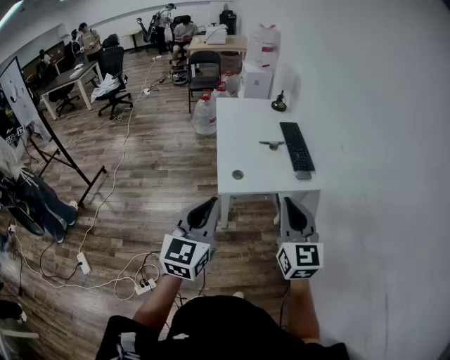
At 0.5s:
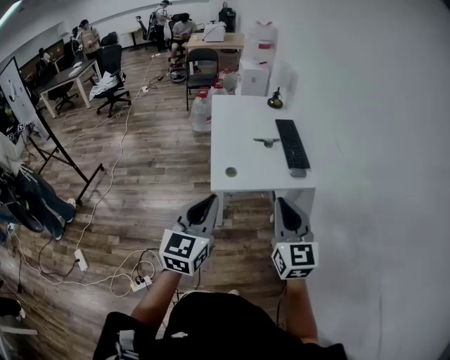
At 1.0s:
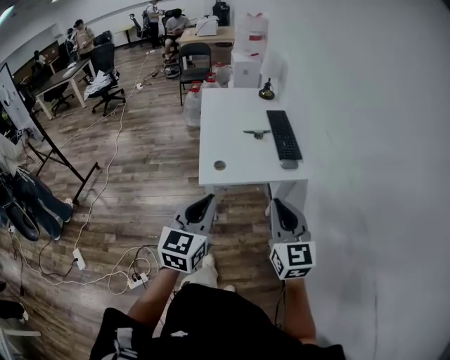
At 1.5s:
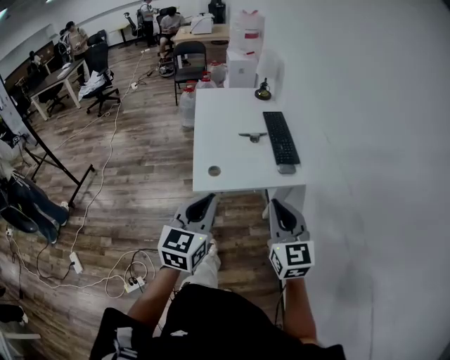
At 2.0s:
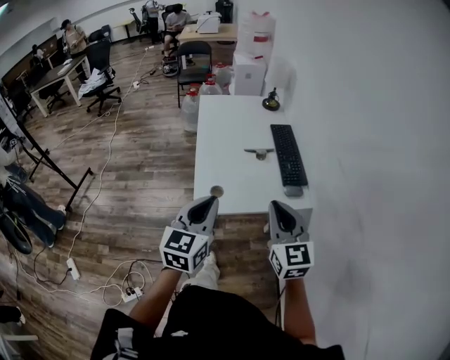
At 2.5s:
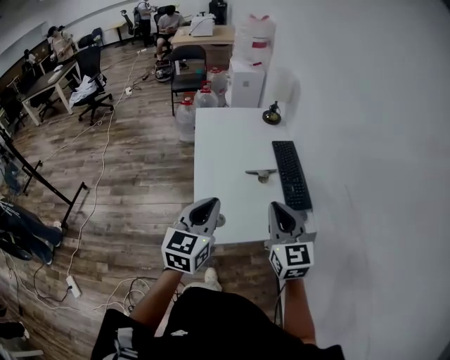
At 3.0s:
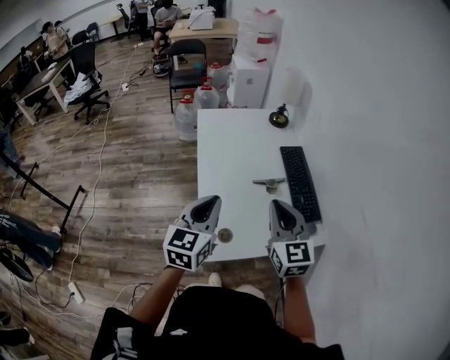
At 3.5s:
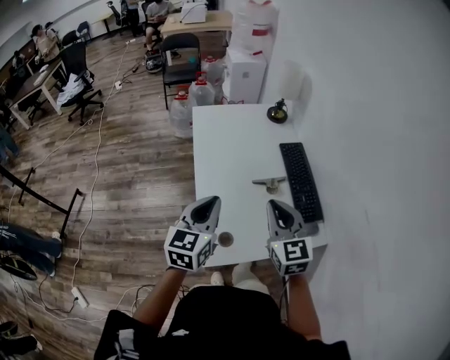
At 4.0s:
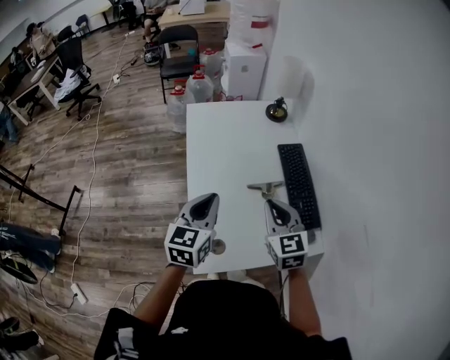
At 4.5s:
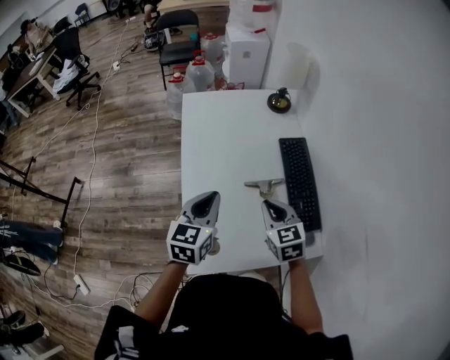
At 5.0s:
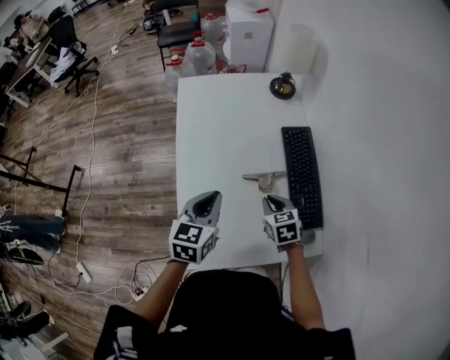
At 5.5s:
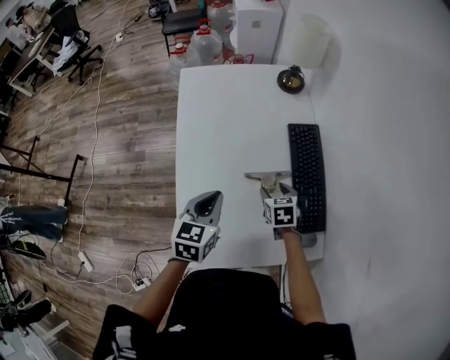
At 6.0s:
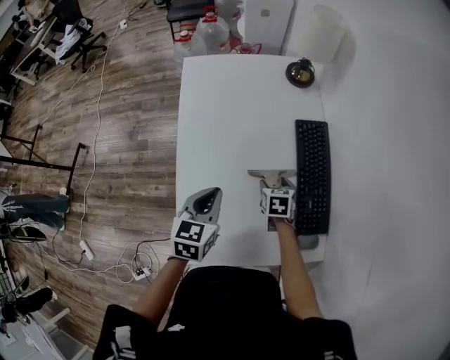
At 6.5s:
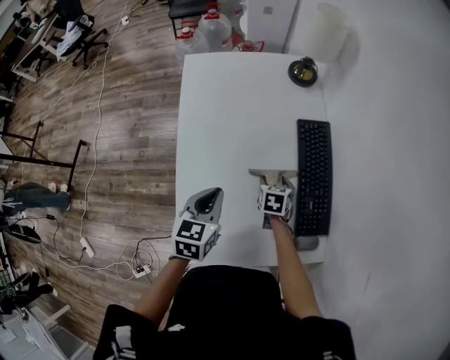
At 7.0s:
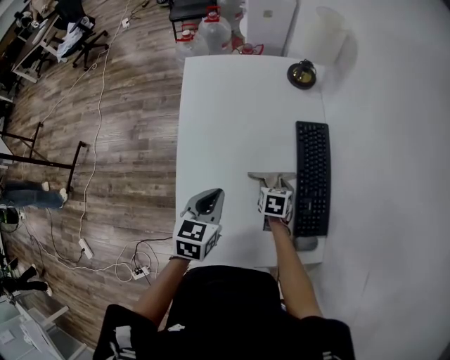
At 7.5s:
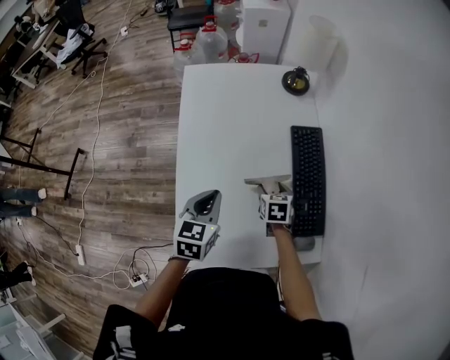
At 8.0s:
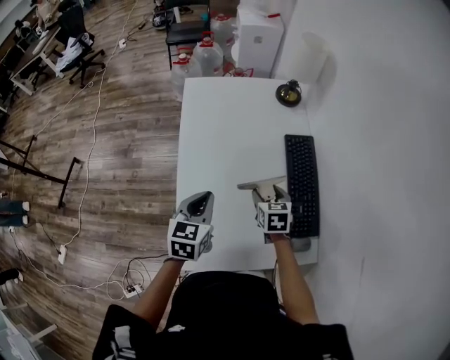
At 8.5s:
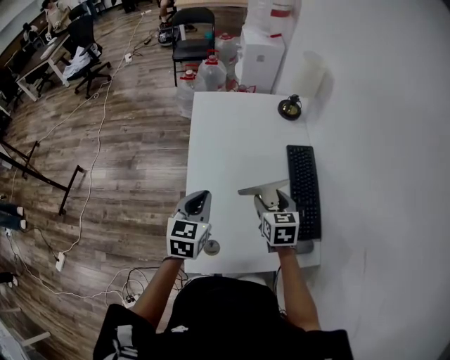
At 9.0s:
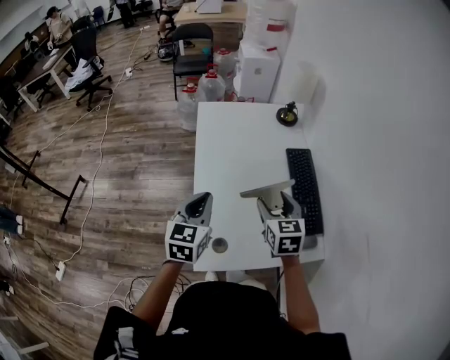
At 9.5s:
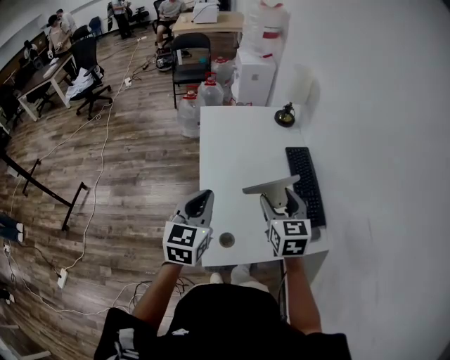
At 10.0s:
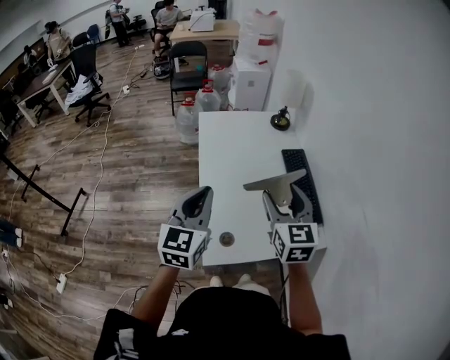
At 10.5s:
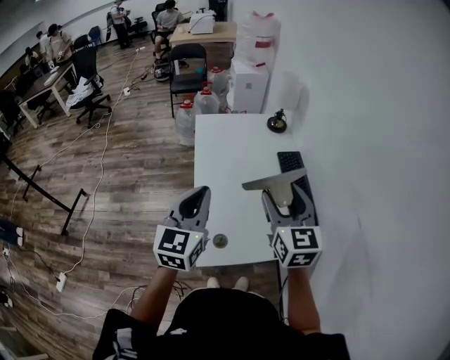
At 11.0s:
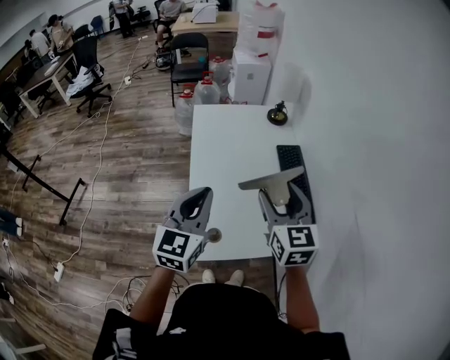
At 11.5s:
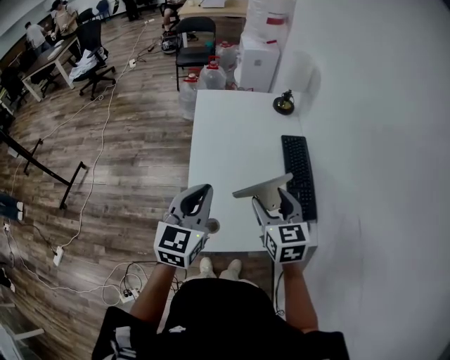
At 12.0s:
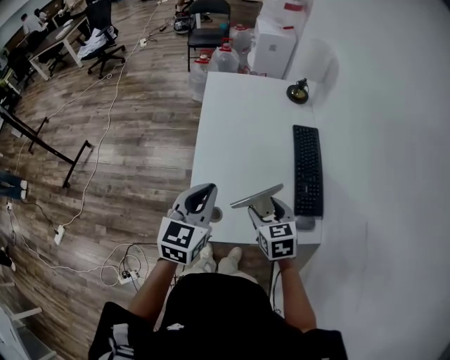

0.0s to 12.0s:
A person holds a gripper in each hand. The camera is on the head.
0.0s to 2.0s: Both grippers travel together forward, roughly 20 cm.
2.0s to 4.0s: The grippers both shift forward by some 30 cm.
4.0s to 6.0s: The left gripper heads downward and forward, covering roughly 15 cm. The right gripper heads downward and forward, covering approximately 35 cm, tips its fingers downward by about 40 degrees, and opens.
6.0s to 8.0s: The right gripper shifts approximately 10 cm upward.
8.0s to 10.0s: The left gripper goes approximately 25 cm upward, backward and to the left, and changes its angle by some 30 degrees, while the right gripper heads upward and backward, covering roughly 35 cm, and angles its fingers upward, by some 30 degrees.
10.0s to 12.0s: The right gripper heads downward, covering about 20 cm, and rotates some 30 degrees. Meanwhile the left gripper is displaced downward and to the right by approximately 10 cm.

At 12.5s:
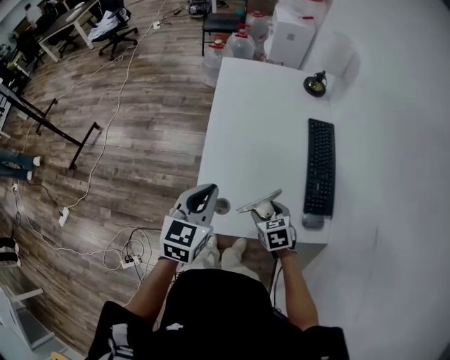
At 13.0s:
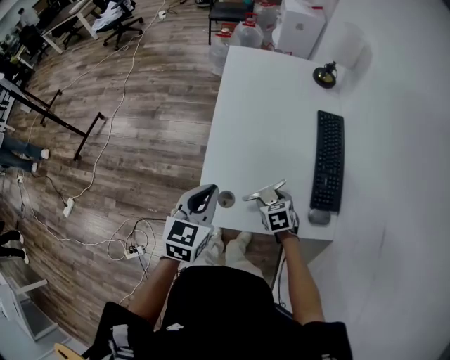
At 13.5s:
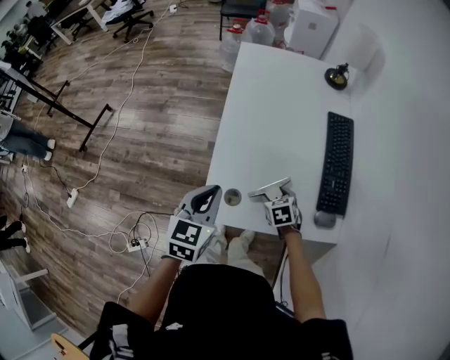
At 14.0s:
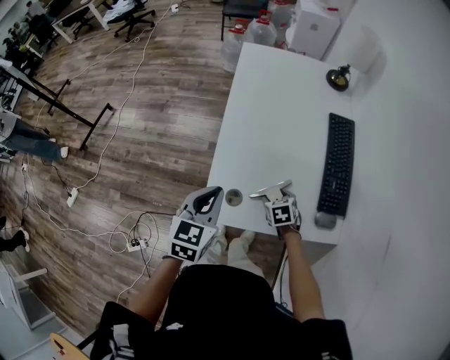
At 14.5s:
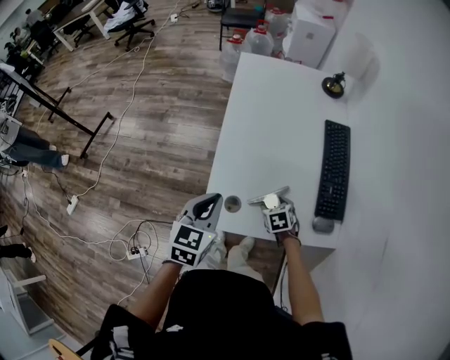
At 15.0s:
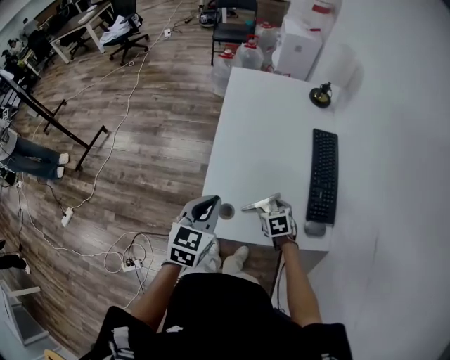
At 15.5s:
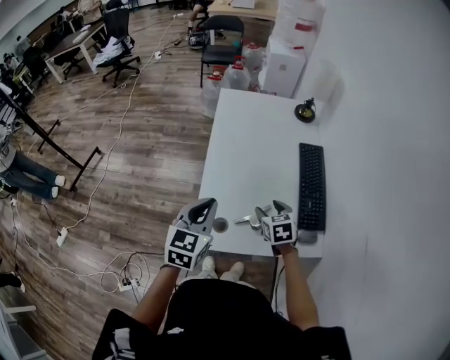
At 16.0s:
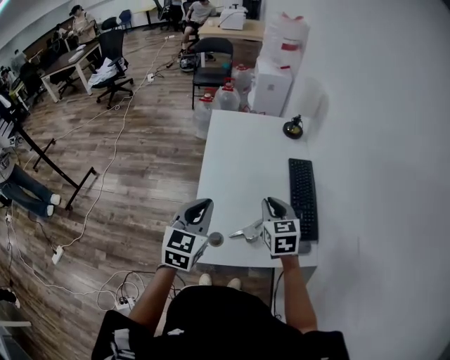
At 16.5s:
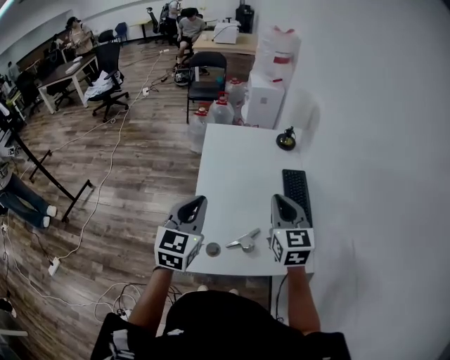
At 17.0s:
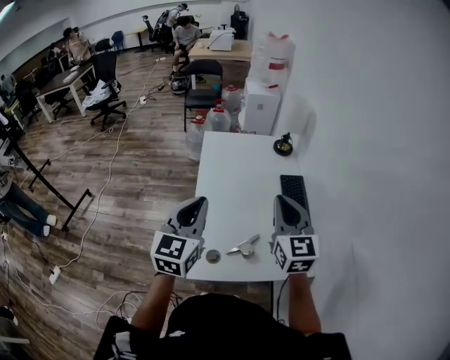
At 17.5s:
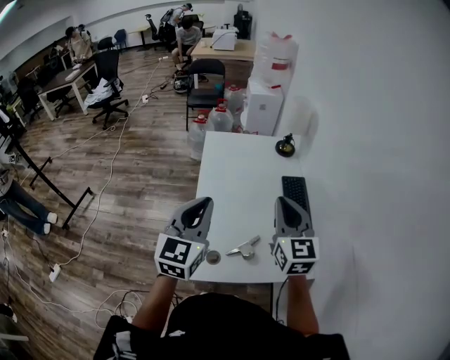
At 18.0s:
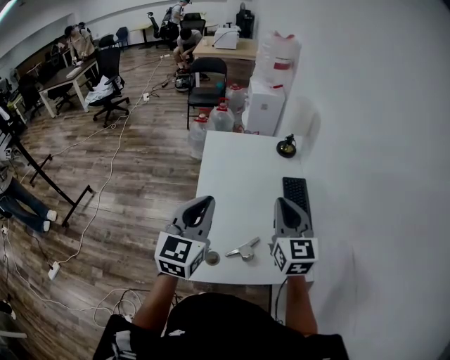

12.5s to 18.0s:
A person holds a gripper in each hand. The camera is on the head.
12.5s to 14.5s: The right gripper travels downward by roughly 10 cm; the left gripper shifts about 5 cm downward.
14.5s to 16.0s: The right gripper shifts roughly 30 cm upward, tips its fingers upward by approximately 40 degrees, and closes up. The left gripper moves upward, some 10 cm.
16.0s to 18.0s: The left gripper shifts about 10 cm upward. Meanwhile the right gripper travels upward by about 15 cm, and rotates roughly 20 degrees.

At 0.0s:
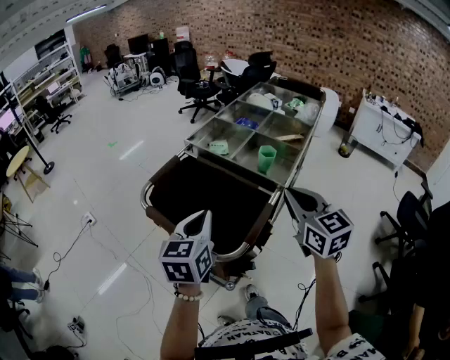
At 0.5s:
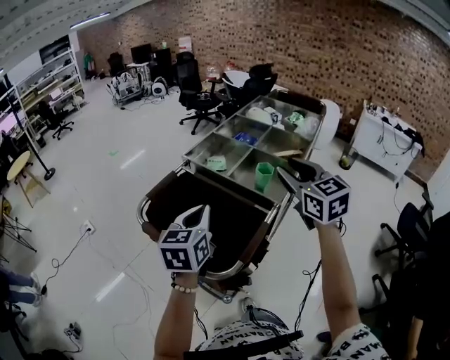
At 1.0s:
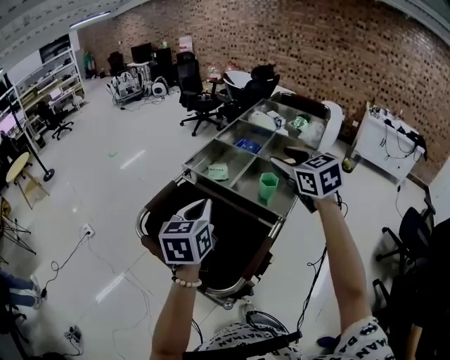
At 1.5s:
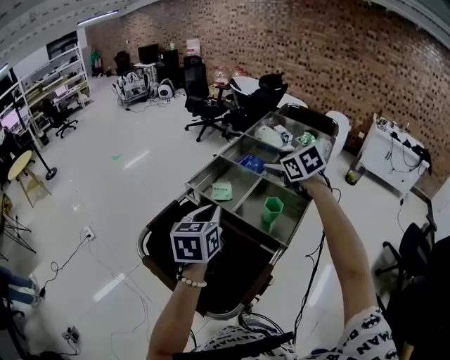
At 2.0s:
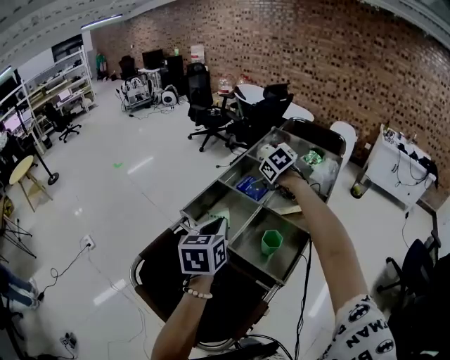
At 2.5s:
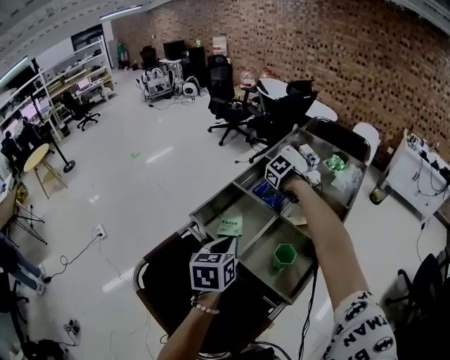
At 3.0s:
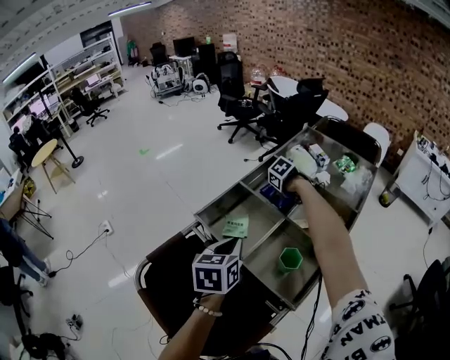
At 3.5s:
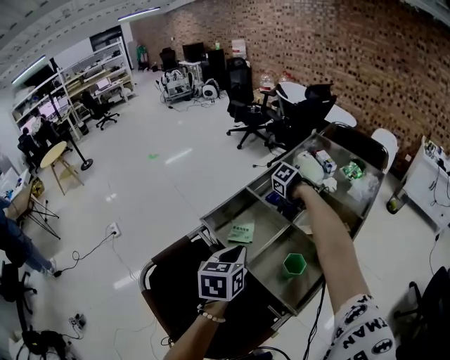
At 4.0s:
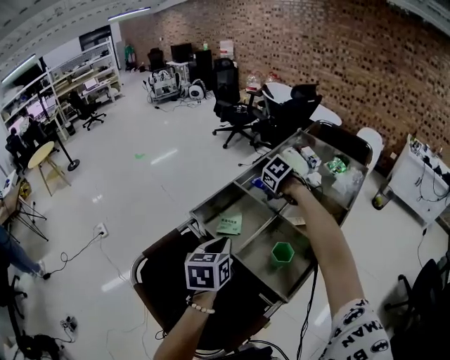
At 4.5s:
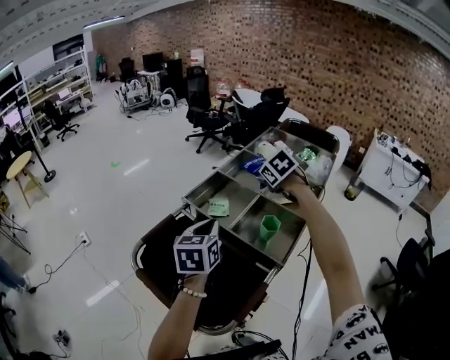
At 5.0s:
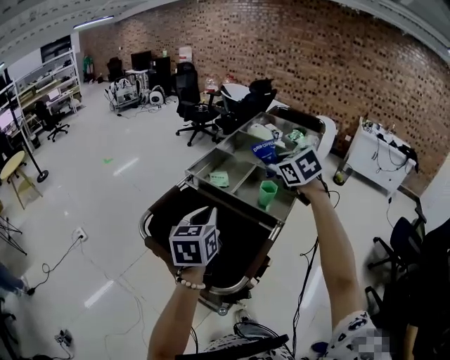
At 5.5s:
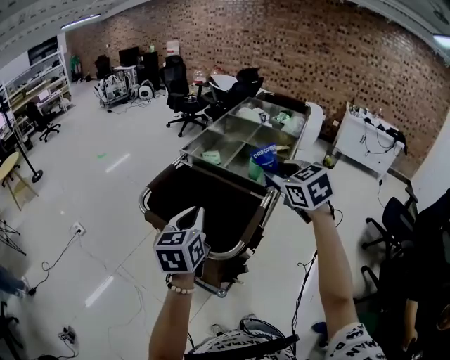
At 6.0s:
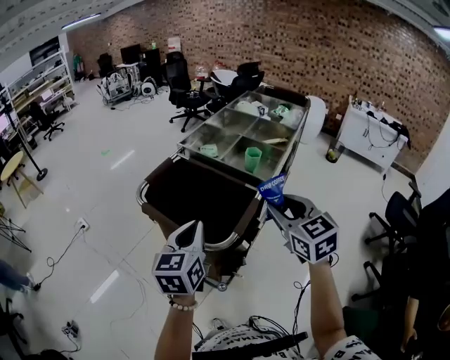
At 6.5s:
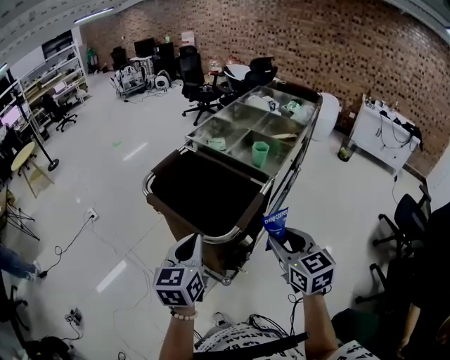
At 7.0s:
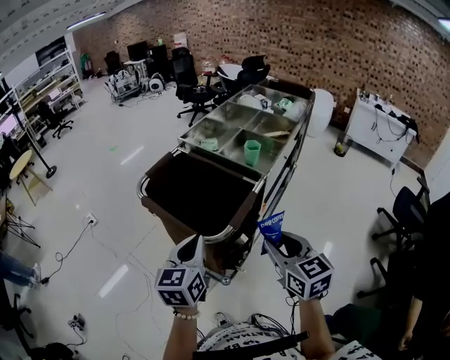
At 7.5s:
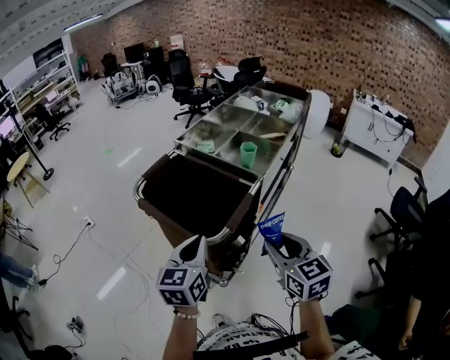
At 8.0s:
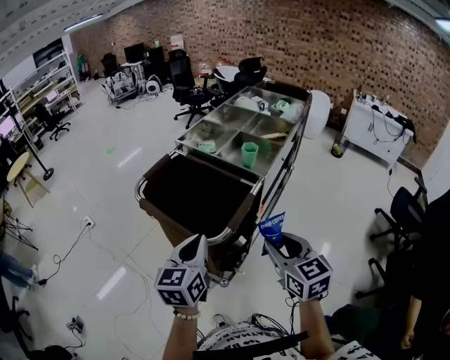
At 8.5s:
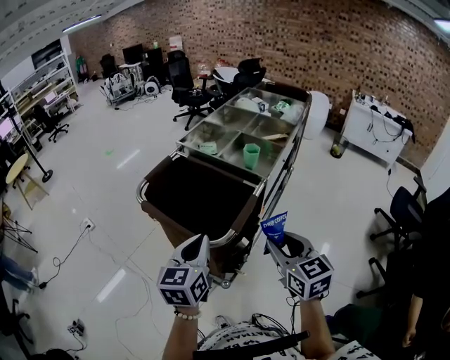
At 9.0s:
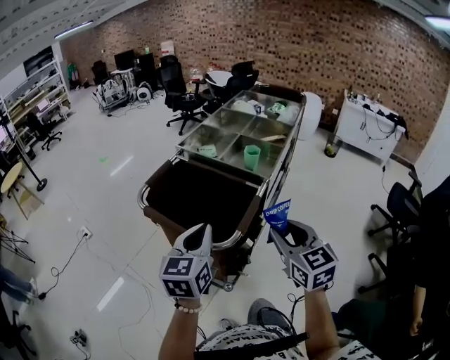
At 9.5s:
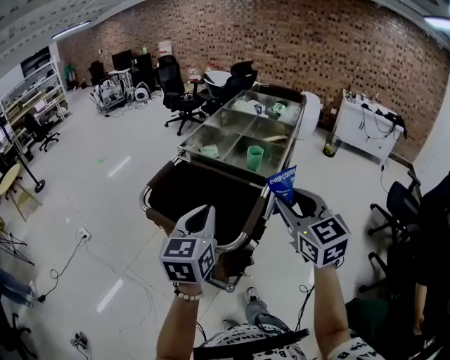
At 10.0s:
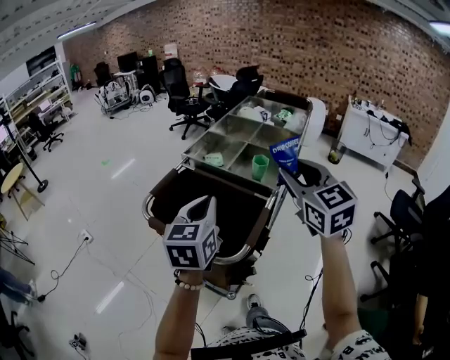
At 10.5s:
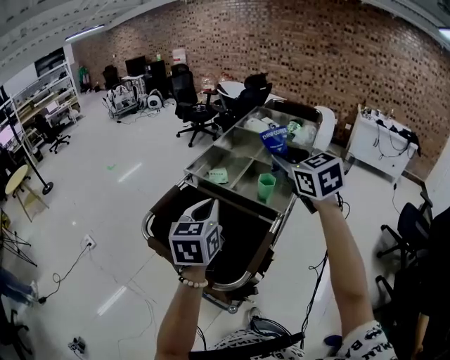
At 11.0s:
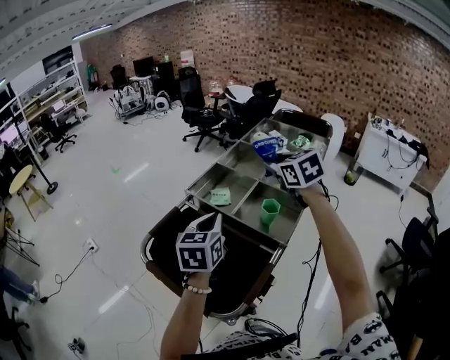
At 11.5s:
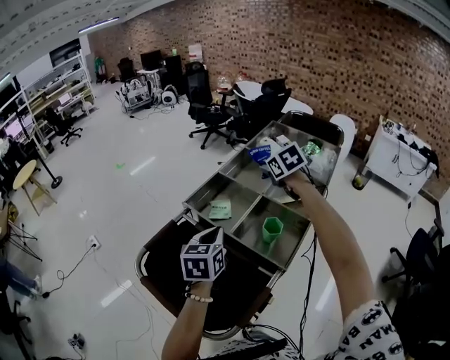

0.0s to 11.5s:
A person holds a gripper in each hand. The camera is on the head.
0.0s to 2.0s: The left gripper goes about 25 cm forward, while the right gripper heads forward, covering approximately 50 cm, tilts its fingers about 50 degrees downward, and opens.
2.0s to 4.0s: Both grippers travel together downward, about 5 cm. The right gripper closes its fingers.
4.0s to 6.0s: The left gripper heads backward, covering some 30 cm, and turns by about 20 degrees. The right gripper goes about 60 cm backward, and points its fingers some 50 degrees further upward.
6.0s to 7.5s: The left gripper ends up some 5 cm from where it was. Meanwhile the right gripper moves backward and downward, approximately 10 cm.
7.5s to 9.5s: Both grippers move upward and forward, roughly 10 cm.
9.5s to 11.5s: The left gripper moves forward, some 25 cm. The right gripper is displaced forward by about 50 cm, and tips its fingers downward by roughly 30 degrees.
